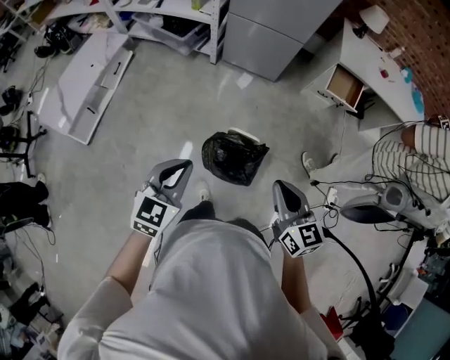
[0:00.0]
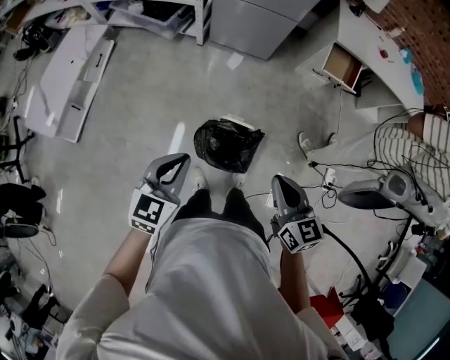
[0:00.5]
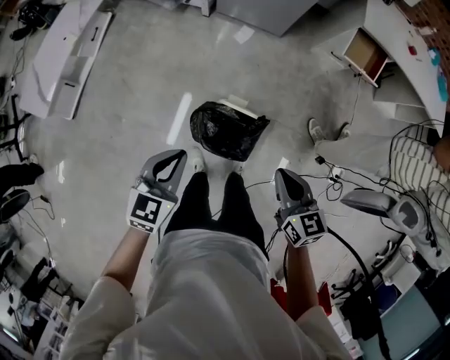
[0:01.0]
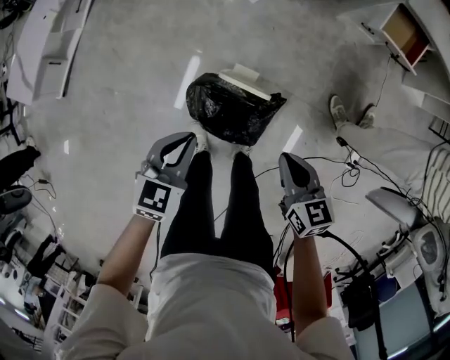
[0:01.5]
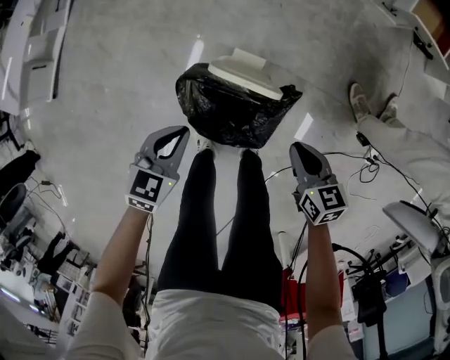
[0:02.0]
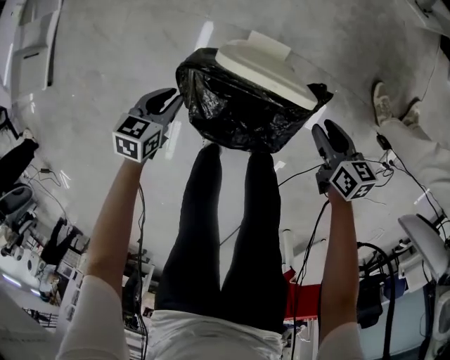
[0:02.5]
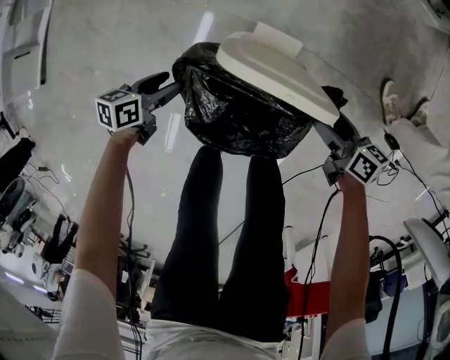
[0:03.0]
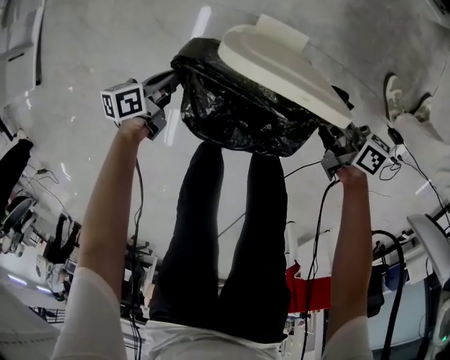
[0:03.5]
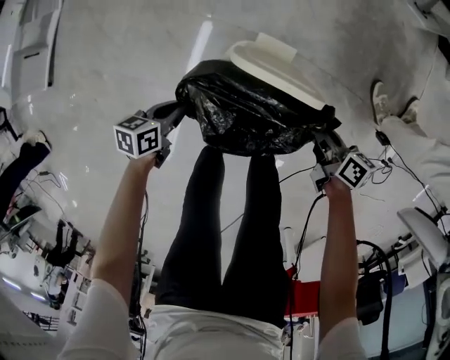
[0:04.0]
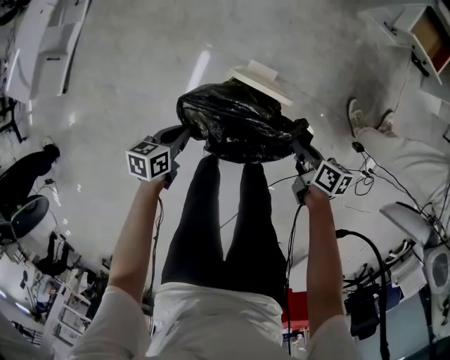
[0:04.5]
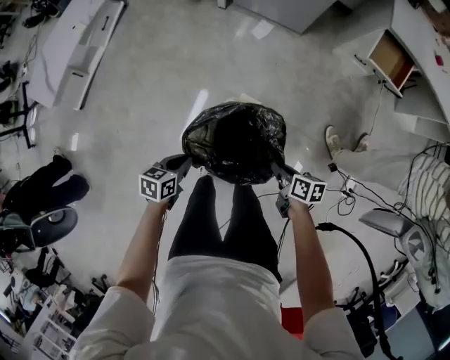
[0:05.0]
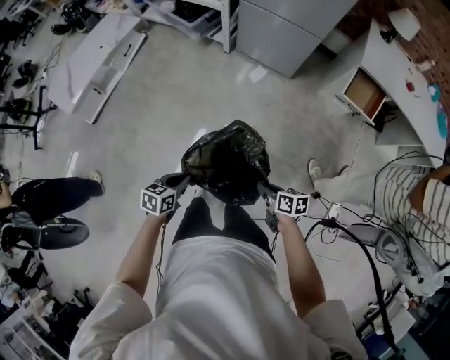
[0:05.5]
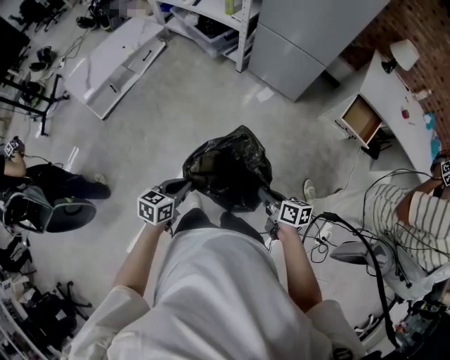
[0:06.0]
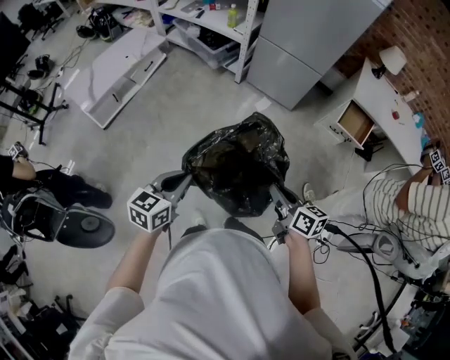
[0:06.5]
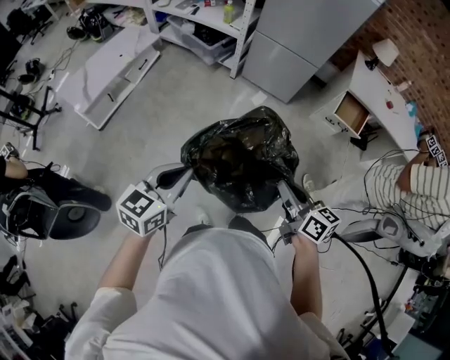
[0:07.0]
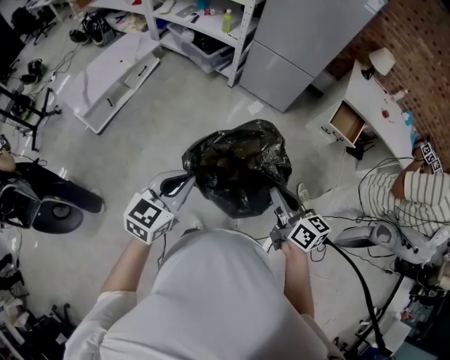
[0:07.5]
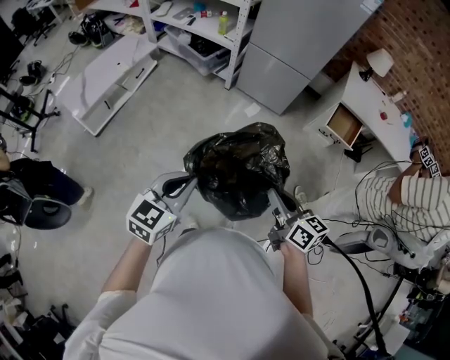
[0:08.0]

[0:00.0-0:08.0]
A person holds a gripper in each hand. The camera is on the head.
0:00.0 to 0:02.0: Both grippers move downward, some 50 cm. The left gripper turns by approximately 20 degrees, while the right gripper changes its angle by approximately 30 degrees.
0:02.0 to 0:04.0: The left gripper shifts roughly 20 cm downward and to the left, turns by approximately 40 degrees, and opens, then closes again. The right gripper is displaced downward by some 15 cm, swivels about 40 degrees, and opens and closes again.
0:04.0 to 0:06.0: The grippers both shift upward by approximately 50 cm. The right gripper changes its angle by about 20 degrees, while the left gripper changes its angle by roughly 30 degrees.
0:06.0 to 0:08.0: The grippers both shift upward by some 20 cm. The left gripper rotates approximately 30 degrees; the right gripper swivels roughly 30 degrees.

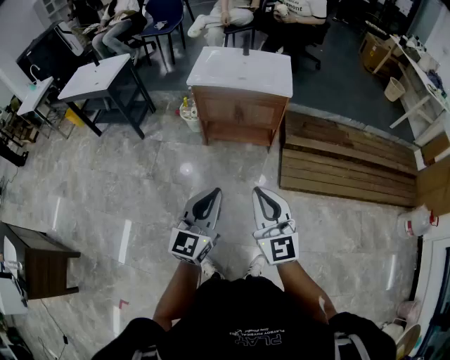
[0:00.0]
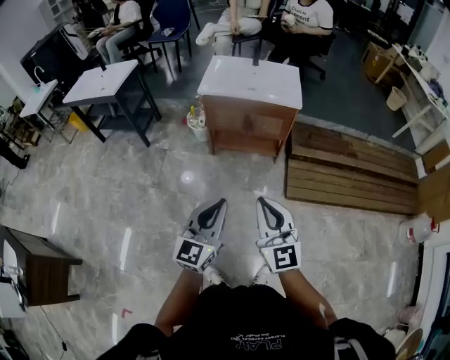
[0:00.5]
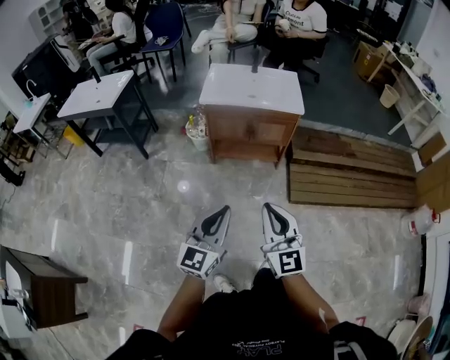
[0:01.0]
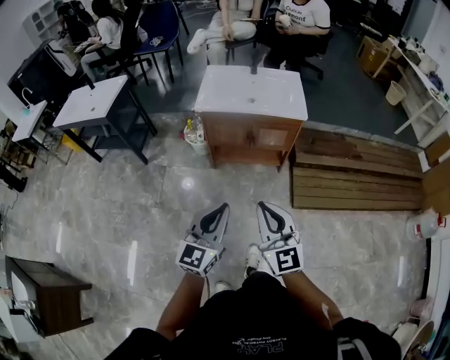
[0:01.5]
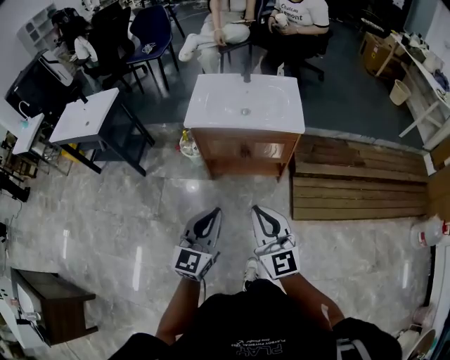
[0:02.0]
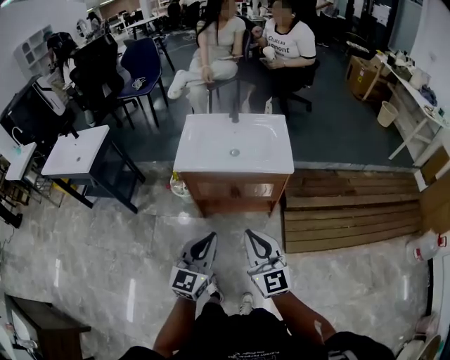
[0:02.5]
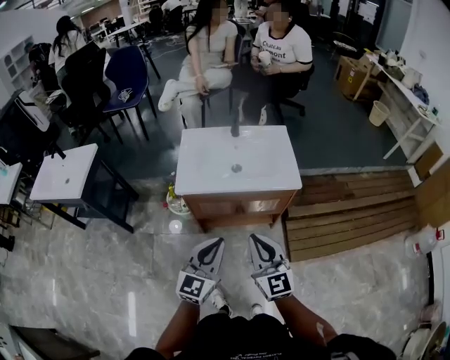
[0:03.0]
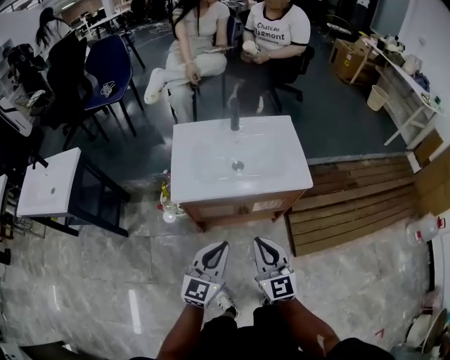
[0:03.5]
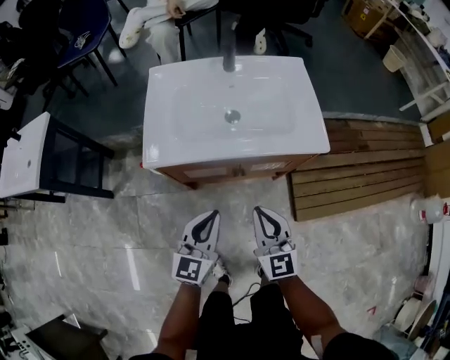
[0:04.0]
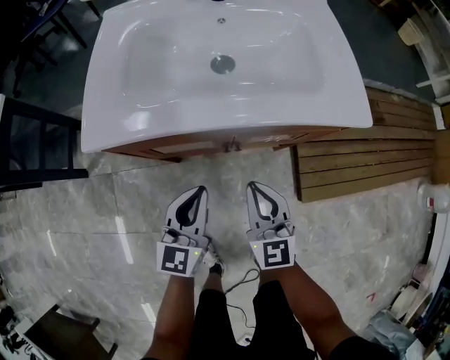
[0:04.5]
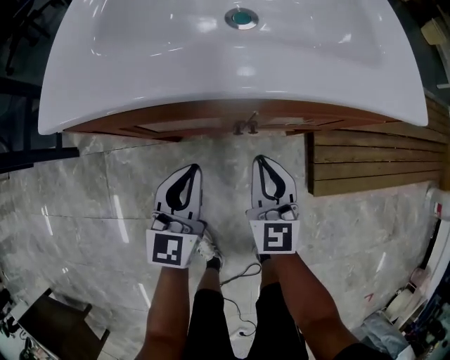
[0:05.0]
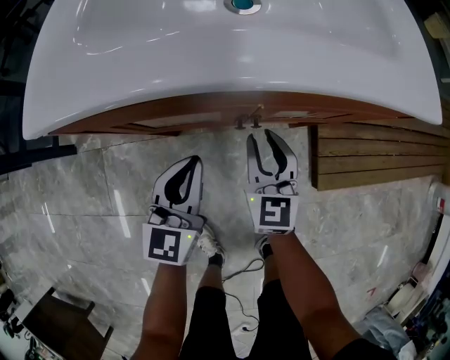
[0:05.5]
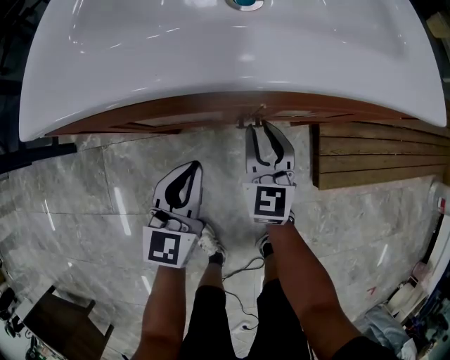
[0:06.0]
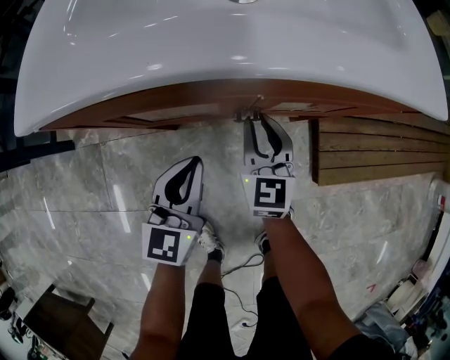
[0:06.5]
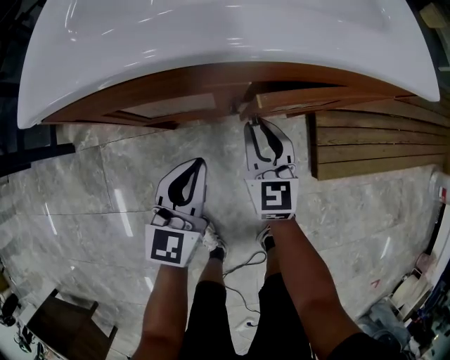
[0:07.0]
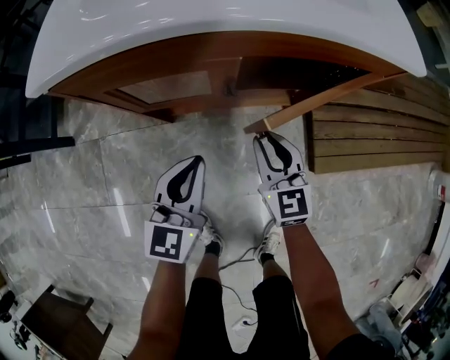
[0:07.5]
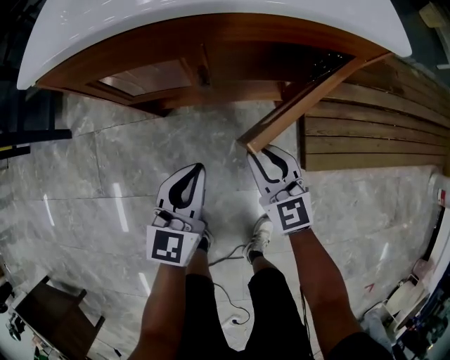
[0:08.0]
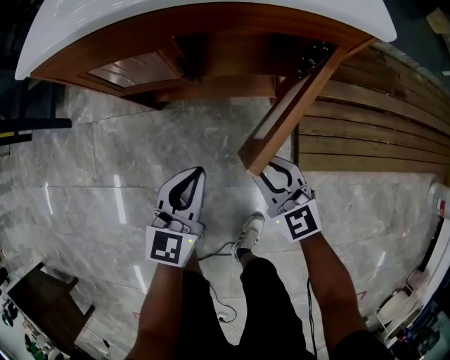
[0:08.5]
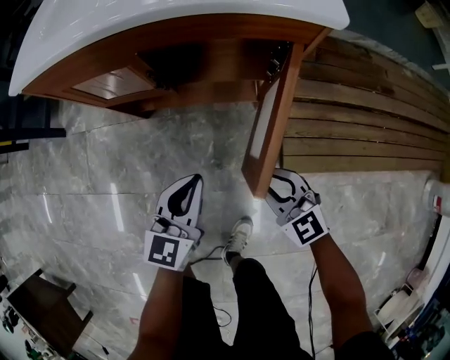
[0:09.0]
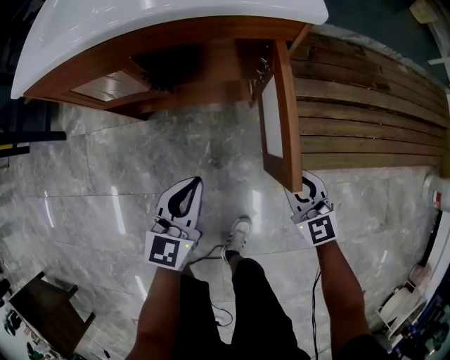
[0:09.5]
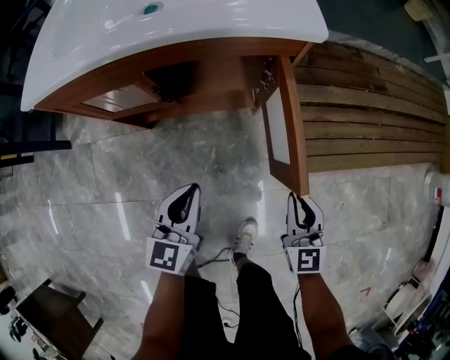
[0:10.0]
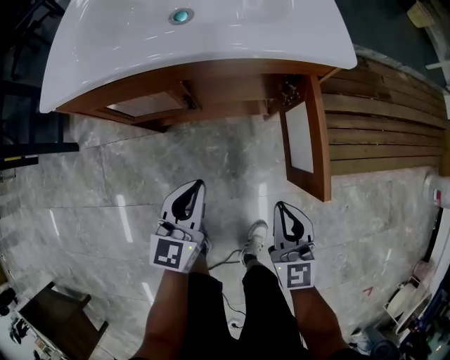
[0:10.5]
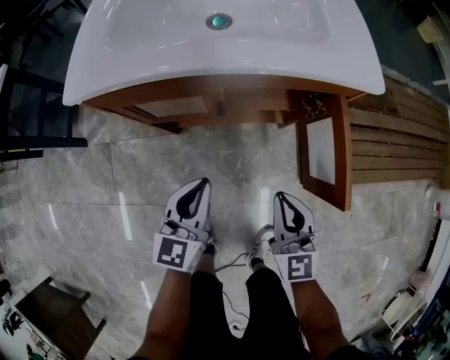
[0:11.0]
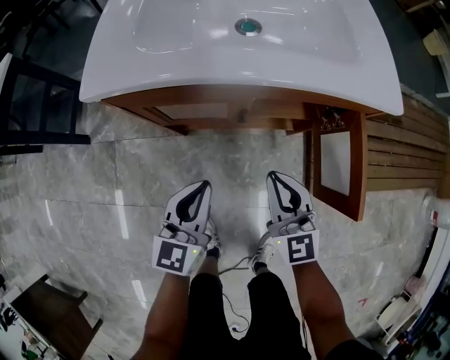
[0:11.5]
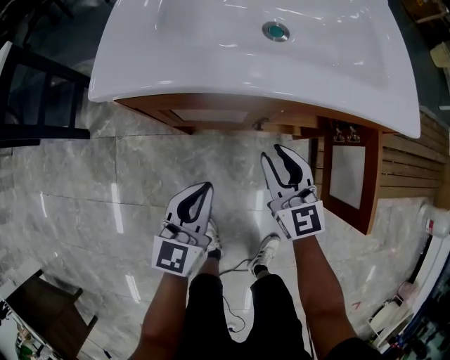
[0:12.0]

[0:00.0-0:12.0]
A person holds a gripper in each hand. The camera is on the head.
0:00.0 to 0:02.0: Both grippers move forward, roughly 20 cm.
0:02.0 to 0:04.0: The two grippers go roughly 35 cm forward and downward. The right gripper swivels approximately 20 degrees.
0:04.0 to 0:06.0: The left gripper moves downward, some 25 cm. Meanwhile the right gripper goes some 35 cm downward and forward.
0:06.0 to 0:08.0: The grippers both shift backward and to the right by some 15 cm. The right gripper turns by some 20 degrees.
0:08.0 to 0:10.0: The left gripper is displaced to the right by approximately 10 cm; the right gripper goes approximately 25 cm to the right and backward, and swivels roughly 20 degrees.
0:10.0 to 0:12.0: The left gripper heads to the left, covering roughly 20 cm, while the right gripper shifts some 35 cm to the left and forward, and turns by some 20 degrees.

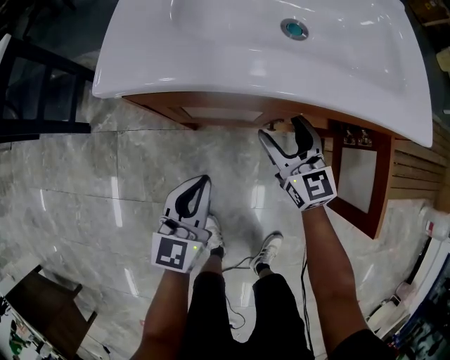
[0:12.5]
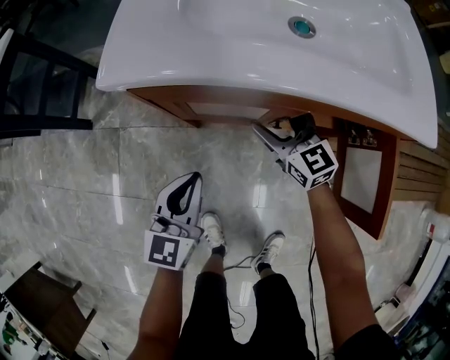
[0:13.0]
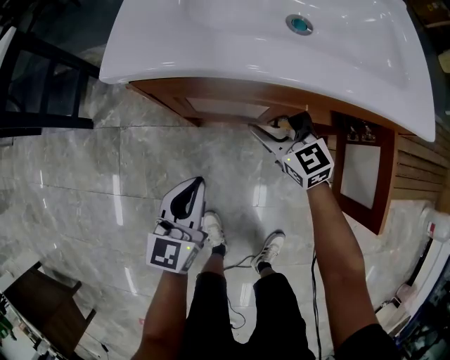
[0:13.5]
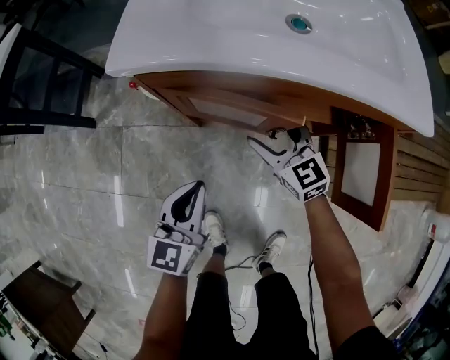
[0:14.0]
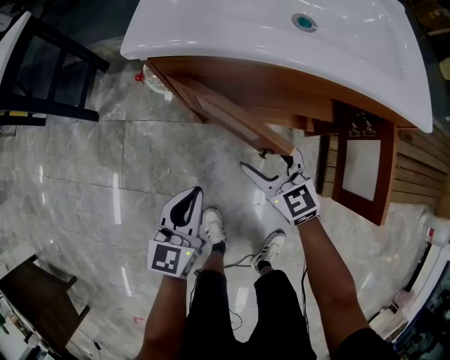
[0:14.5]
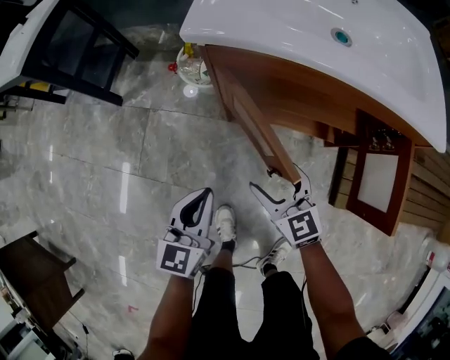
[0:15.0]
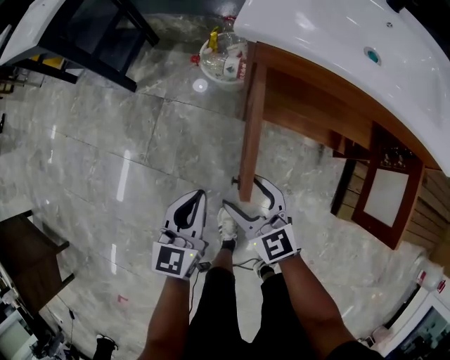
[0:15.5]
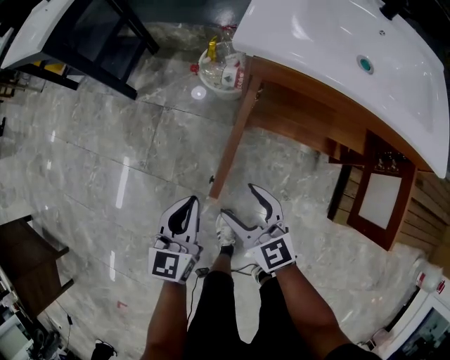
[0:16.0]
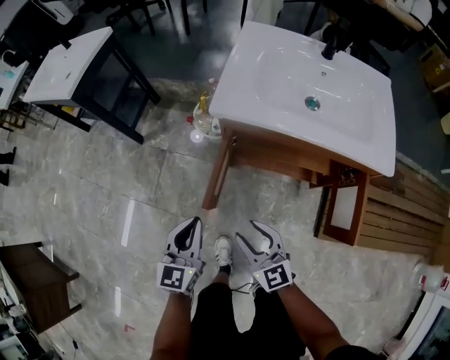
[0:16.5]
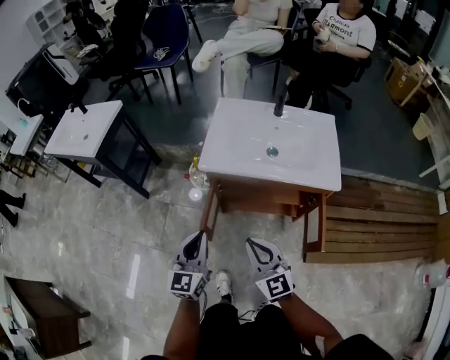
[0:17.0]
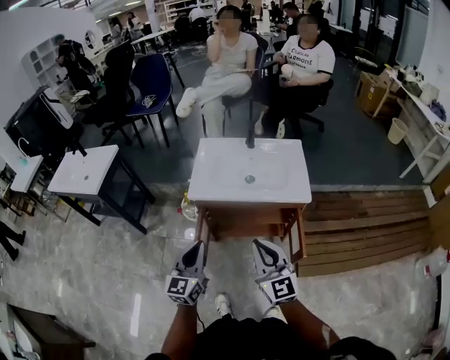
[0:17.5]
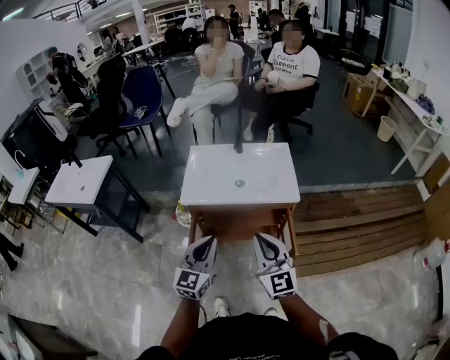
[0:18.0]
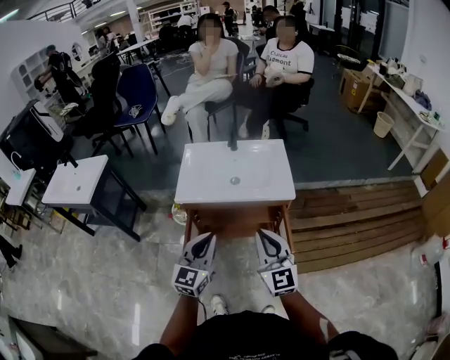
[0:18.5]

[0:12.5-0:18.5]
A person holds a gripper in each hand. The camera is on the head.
0:12.5 to 0:14.5: The right gripper moves backward and to the left, roughly 15 cm; the left gripper is displaced backward by roughly 10 cm.
0:14.5 to 0:16.5: The left gripper travels upward and to the left by some 15 cm. The right gripper moves upward, backward and to the left, some 20 cm, and closes.
0:16.5 to 0:18.5: The grippers both shift upward by about 30 cm. The right gripper rotates approximately 40 degrees, and closes. Meanwhile the left gripper turns by approximately 30 degrees.
